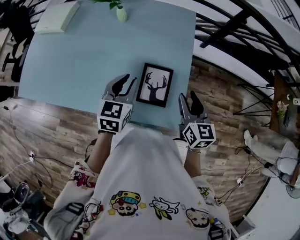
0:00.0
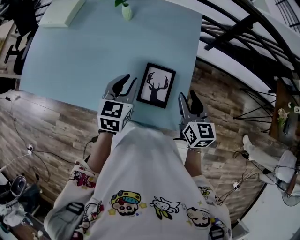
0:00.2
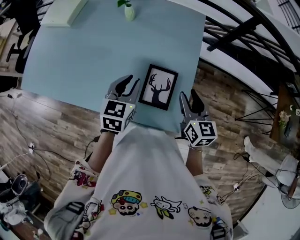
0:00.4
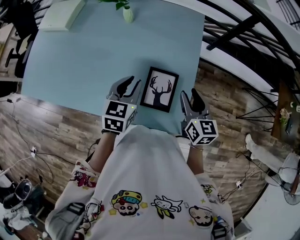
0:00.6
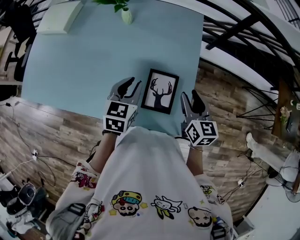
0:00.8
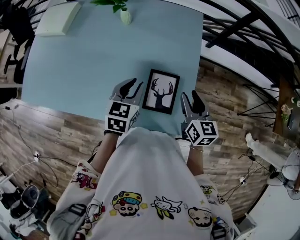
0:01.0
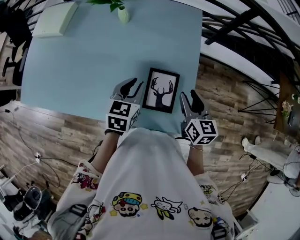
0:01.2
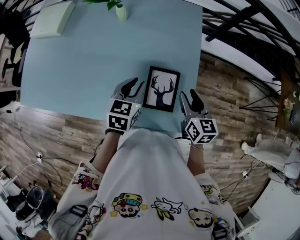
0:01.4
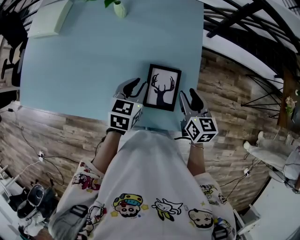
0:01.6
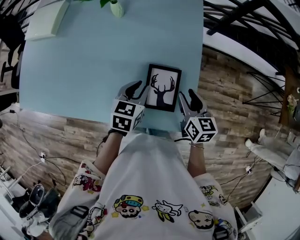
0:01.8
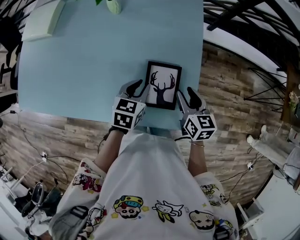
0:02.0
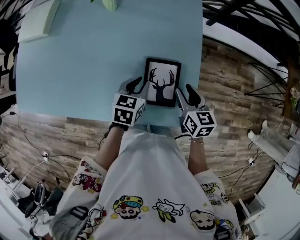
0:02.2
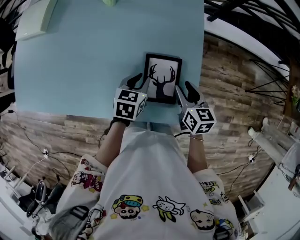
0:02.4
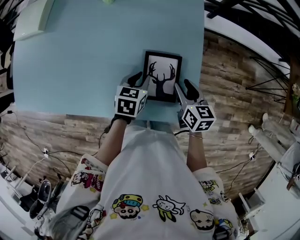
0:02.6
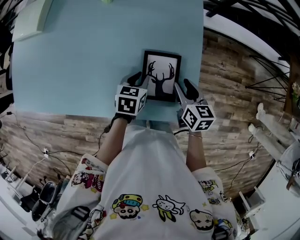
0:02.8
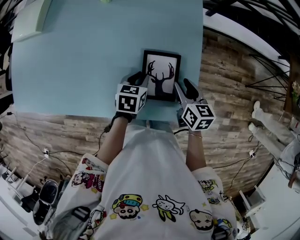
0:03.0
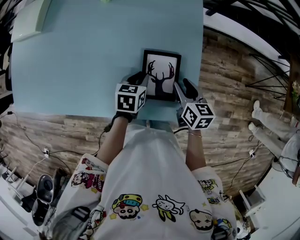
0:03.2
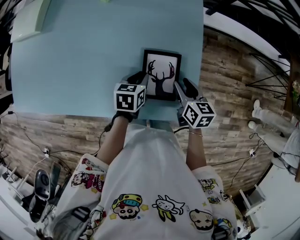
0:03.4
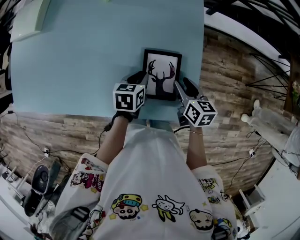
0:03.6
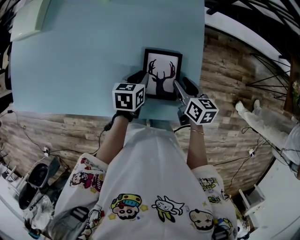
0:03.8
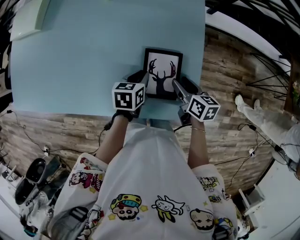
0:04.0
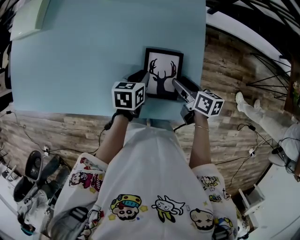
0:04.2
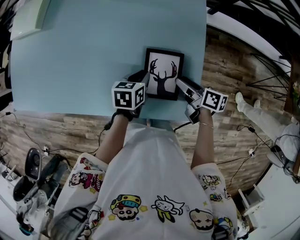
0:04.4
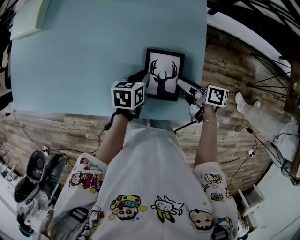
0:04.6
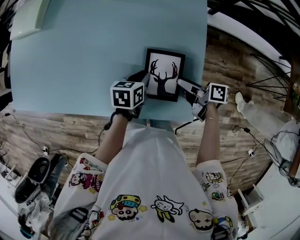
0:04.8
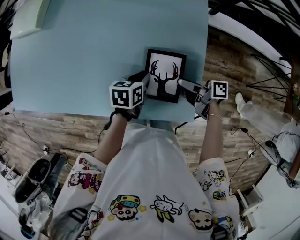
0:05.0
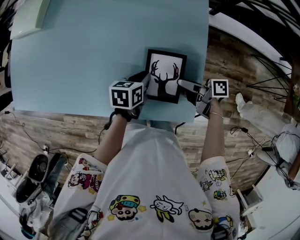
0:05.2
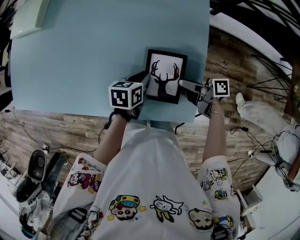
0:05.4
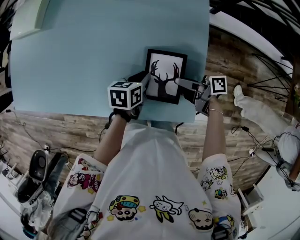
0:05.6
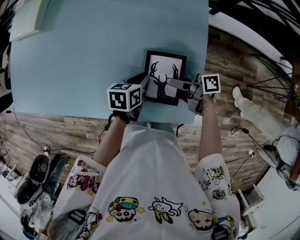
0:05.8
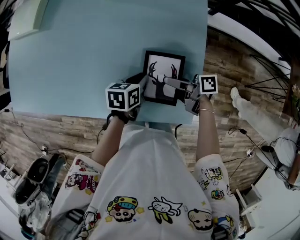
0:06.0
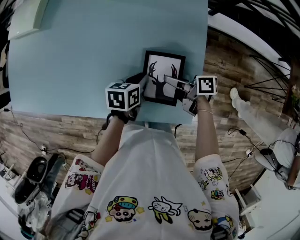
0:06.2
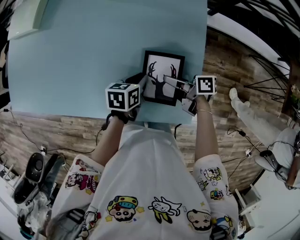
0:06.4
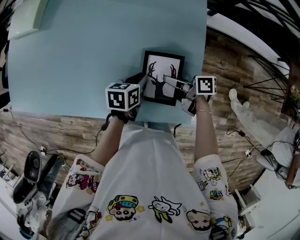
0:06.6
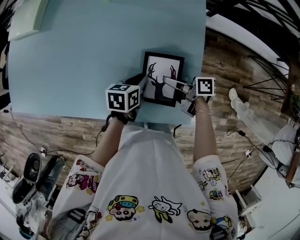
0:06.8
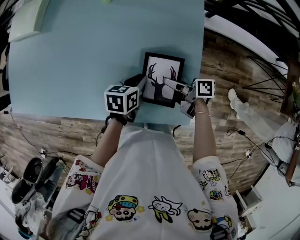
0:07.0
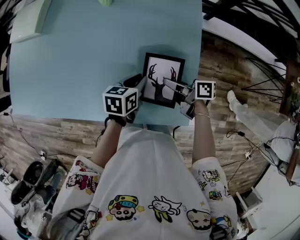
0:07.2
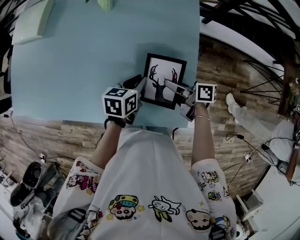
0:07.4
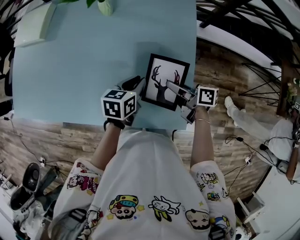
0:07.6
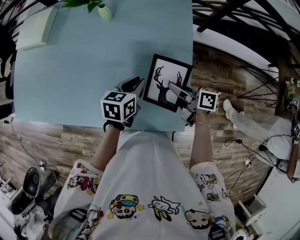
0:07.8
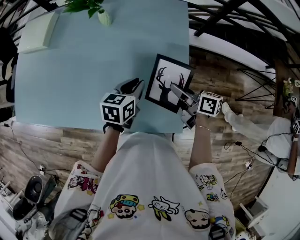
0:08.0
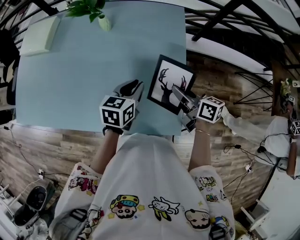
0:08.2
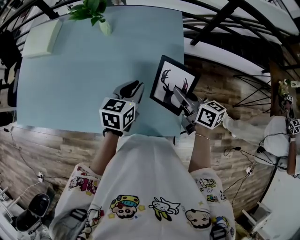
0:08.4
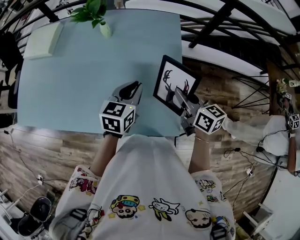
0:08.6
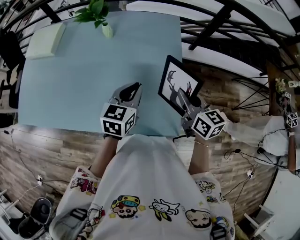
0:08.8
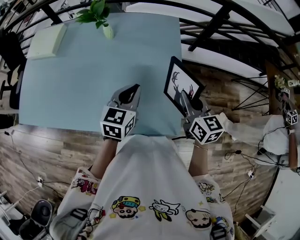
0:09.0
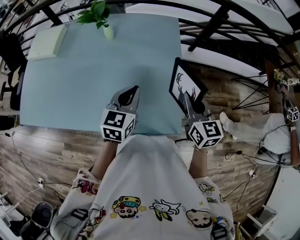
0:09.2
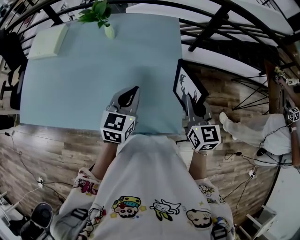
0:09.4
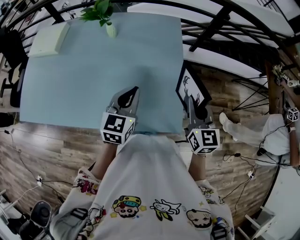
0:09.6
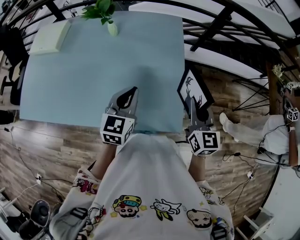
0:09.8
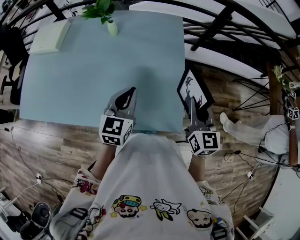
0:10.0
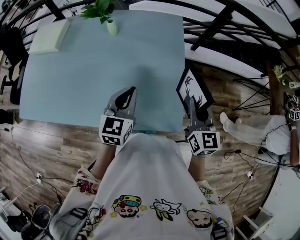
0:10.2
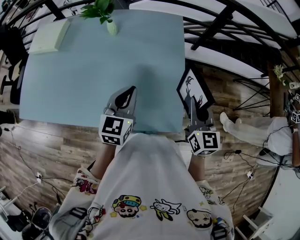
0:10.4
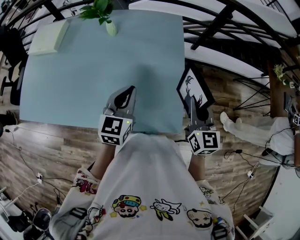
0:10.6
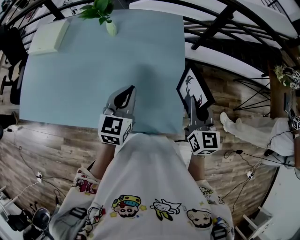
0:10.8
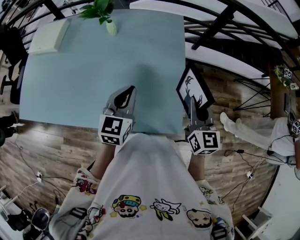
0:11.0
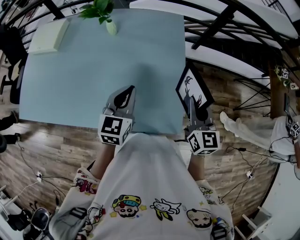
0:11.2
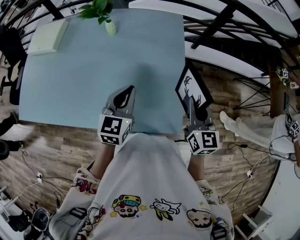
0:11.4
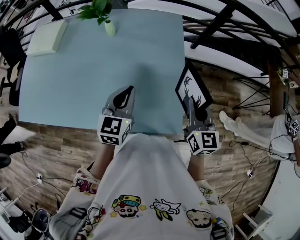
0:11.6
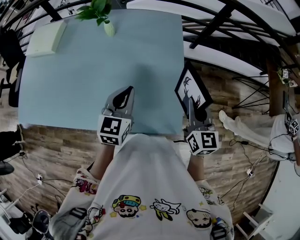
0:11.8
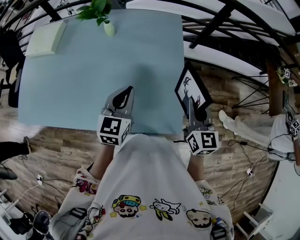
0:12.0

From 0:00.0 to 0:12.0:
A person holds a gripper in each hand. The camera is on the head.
From 0:00.0 to 0:01.6: The two grippers go approximately 5 cm downward.
From 0:01.6 to 0:03.0: The grippers both shift downward by roughly 10 cm.
From 0:03.0 to 0:04.4: The right gripper swivels about 40 degrees.
From 0:04.4 to 0:06.0: The right gripper shifts about 5 cm to the left, and turns by some 30 degrees.
From 0:06.0 to 0:07.6: The left gripper is displaced upward by roughly 5 cm. Meanwhile the right gripper changes place by roughly 5 cm, and closes.
From 0:07.6 to 0:09.0: The right gripper heads upward and to the right, covering about 15 cm, and changes its angle by roughly 60 degrees. The left gripper moves upward, approximately 15 cm, and rotates some 30 degrees.
From 0:09.0 to 0:10.4: The grippers move only a little.
From 0:10.4 to 0:12.0: The two grippers keep their place.

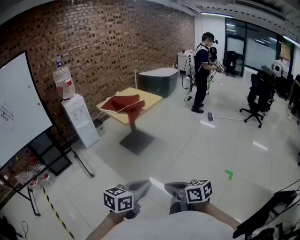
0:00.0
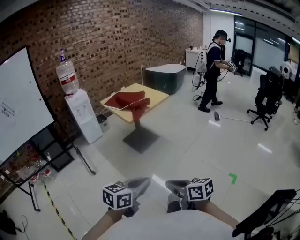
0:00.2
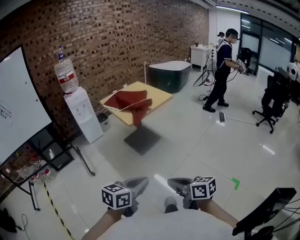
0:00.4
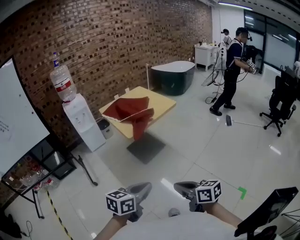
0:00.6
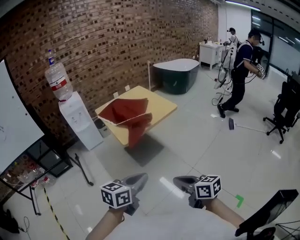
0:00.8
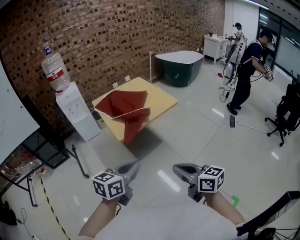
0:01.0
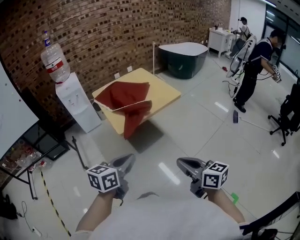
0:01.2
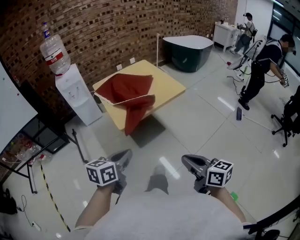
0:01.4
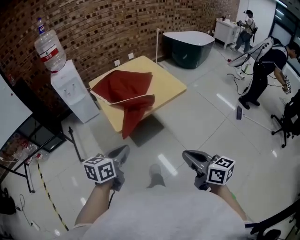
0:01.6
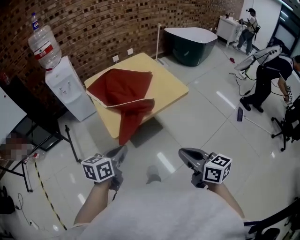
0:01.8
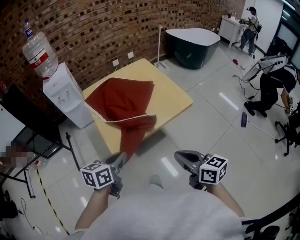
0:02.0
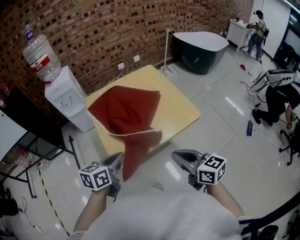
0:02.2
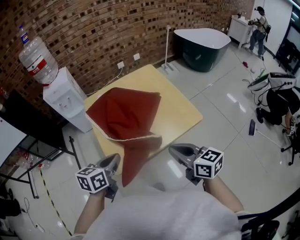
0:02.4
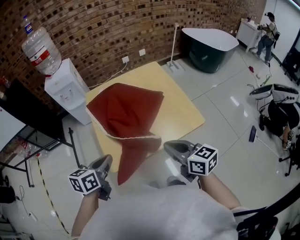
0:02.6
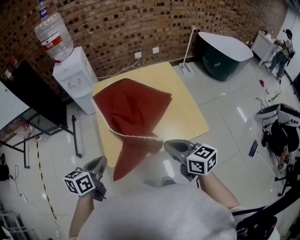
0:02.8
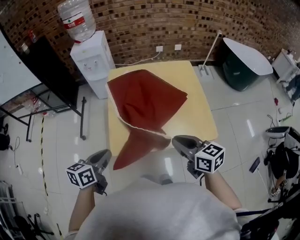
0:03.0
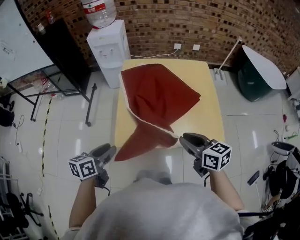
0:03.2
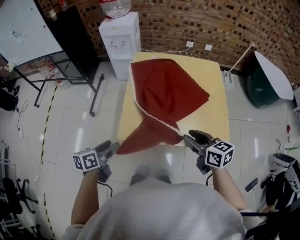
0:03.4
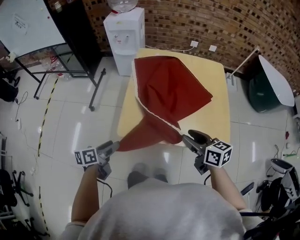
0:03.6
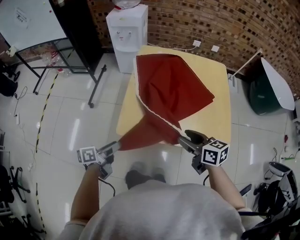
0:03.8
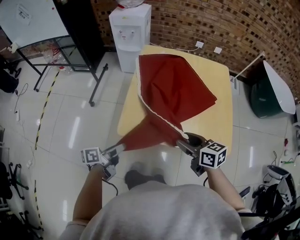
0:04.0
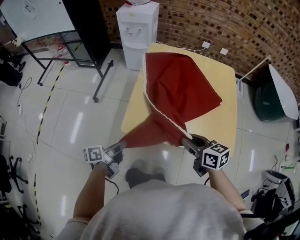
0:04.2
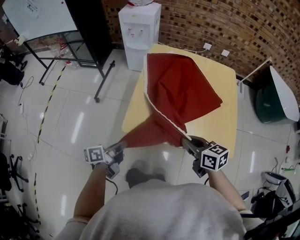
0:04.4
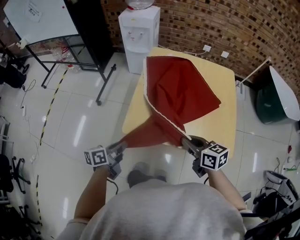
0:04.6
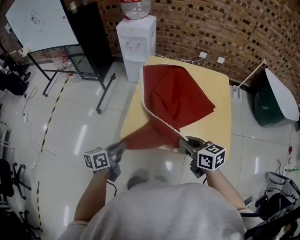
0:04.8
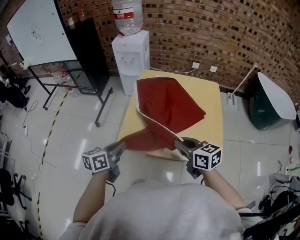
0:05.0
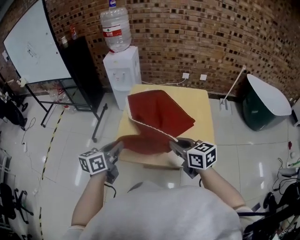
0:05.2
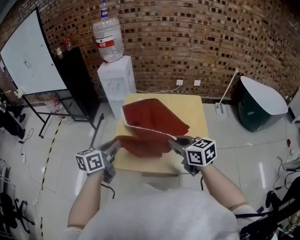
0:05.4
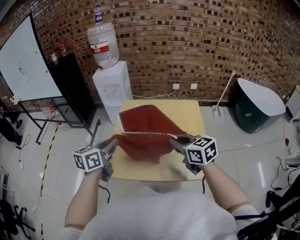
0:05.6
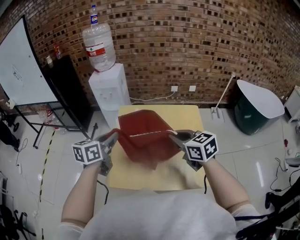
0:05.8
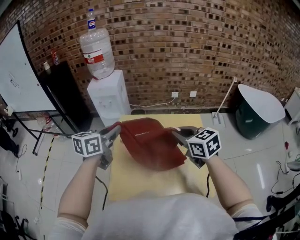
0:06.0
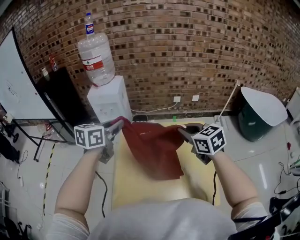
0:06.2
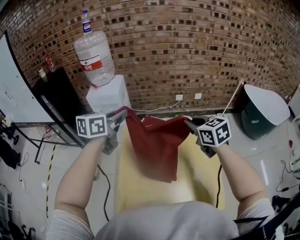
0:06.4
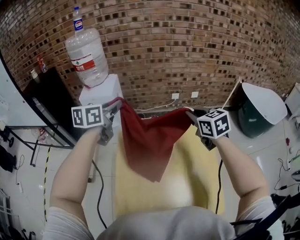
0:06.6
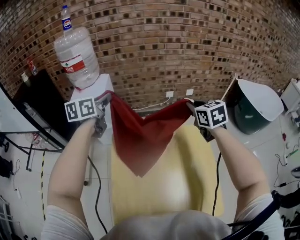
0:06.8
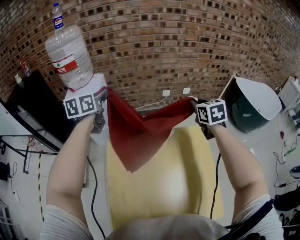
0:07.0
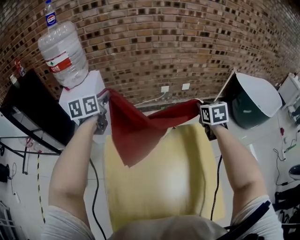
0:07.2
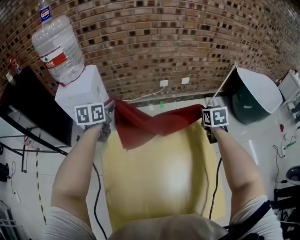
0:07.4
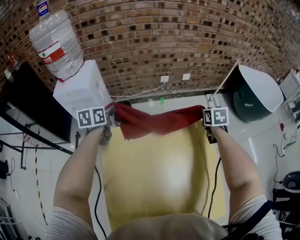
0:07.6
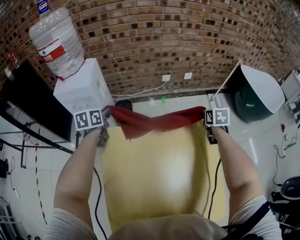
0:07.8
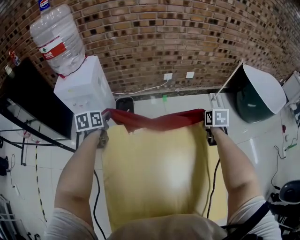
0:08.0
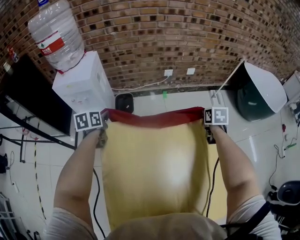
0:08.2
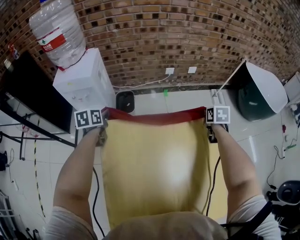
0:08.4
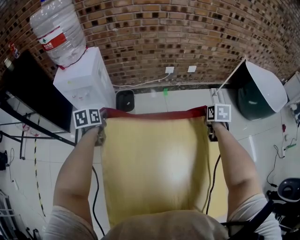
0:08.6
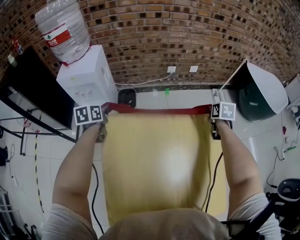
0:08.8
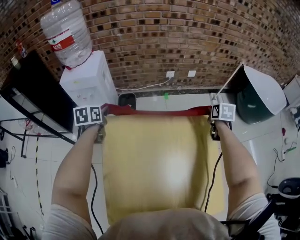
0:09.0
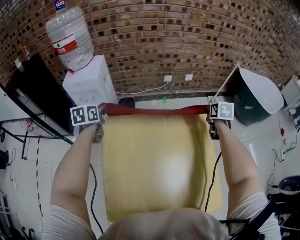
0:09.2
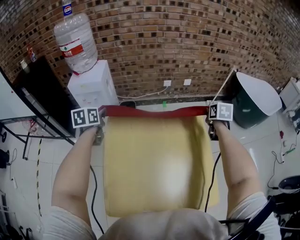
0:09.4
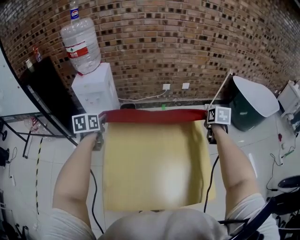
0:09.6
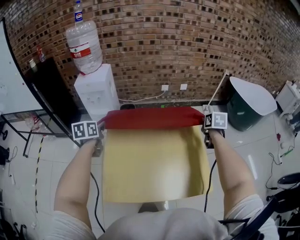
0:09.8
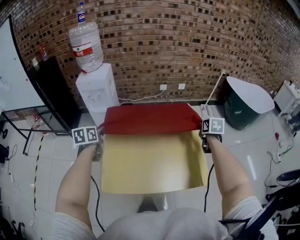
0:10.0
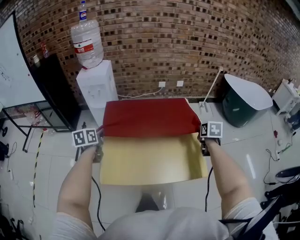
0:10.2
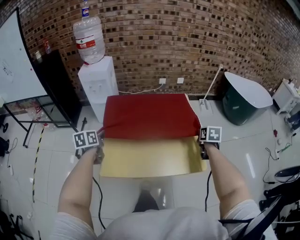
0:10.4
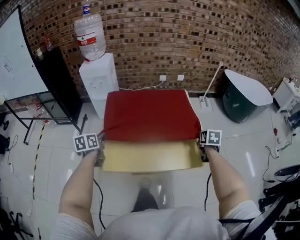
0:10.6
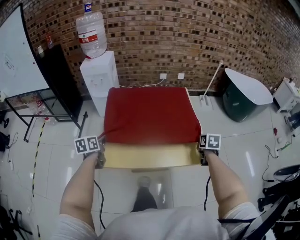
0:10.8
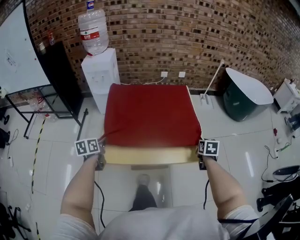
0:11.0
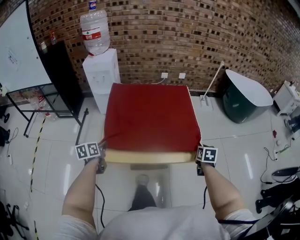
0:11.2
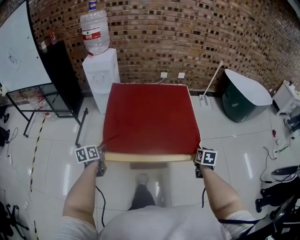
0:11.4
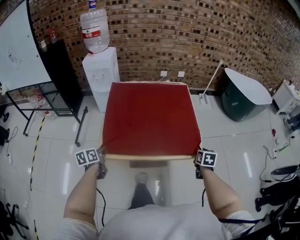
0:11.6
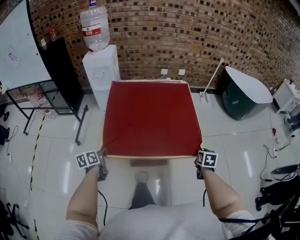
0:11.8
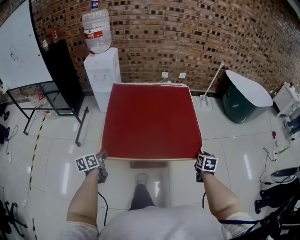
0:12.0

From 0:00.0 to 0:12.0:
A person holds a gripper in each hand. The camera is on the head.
From 0:00.0 to 0:01.6: Both grippers are carried forward, approximately 60 cm. The left gripper changes its angle by roughly 30 degrees.
From 0:01.6 to 0:03.0: The left gripper moves some 25 cm, and changes its angle by some 30 degrees, while the right gripper ends up about 40 cm from where it was, and rotates roughly 30 degrees.
From 0:03.0 to 0:04.4: Both grippers travel together downward, about 10 cm. The right gripper rotates some 20 degrees, and opens, then closes again; the left gripper turns by roughly 40 degrees, and opens and closes again.
From 0:04.4 to 0:06.0: Both grippers move forward, upward and to the right, approximately 40 cm. The right gripper turns by about 20 degrees, while the left gripper rolls clockwise, seen from behind, by some 50 degrees.
From 0:06.0 to 0:07.6: The right gripper shifts some 40 cm forward, downward and to the right, and swivels some 50 degrees, while the left gripper travels forward and downward by some 40 cm.
From 0:07.6 to 0:09.0: The left gripper moves backward, approximately 5 cm.
From 0:09.0 to 0:10.4: The two grippers go approximately 35 cm backward.
From 0:10.4 to 0:12.0: Both grippers travel together backward and downward, approximately 20 cm.
